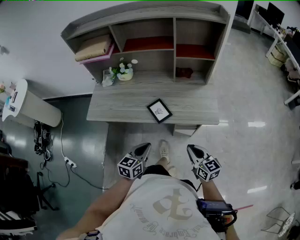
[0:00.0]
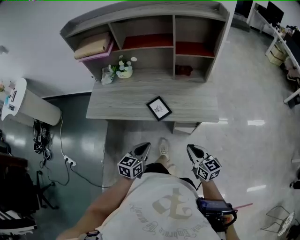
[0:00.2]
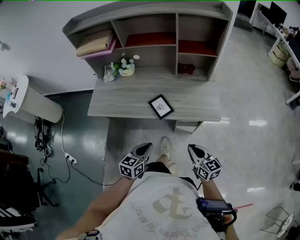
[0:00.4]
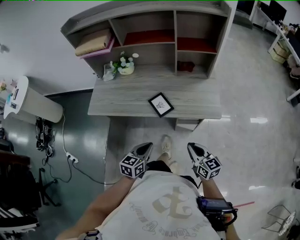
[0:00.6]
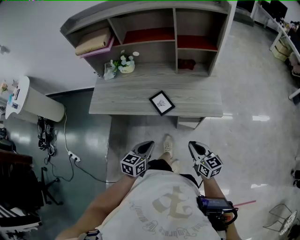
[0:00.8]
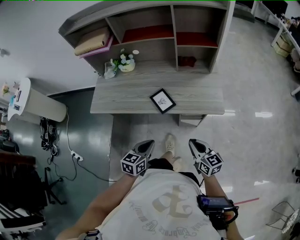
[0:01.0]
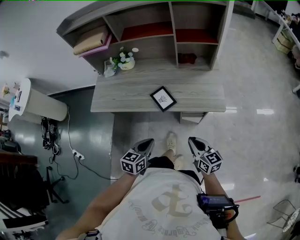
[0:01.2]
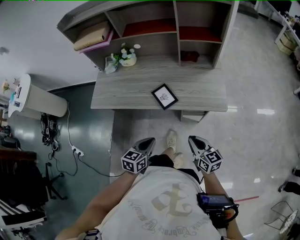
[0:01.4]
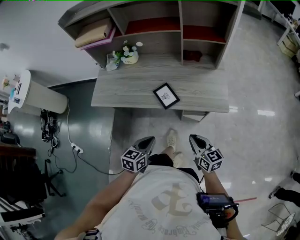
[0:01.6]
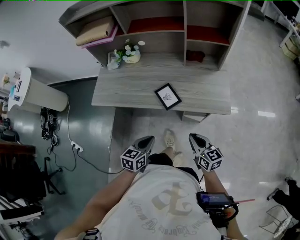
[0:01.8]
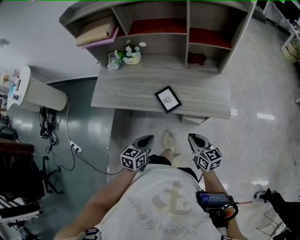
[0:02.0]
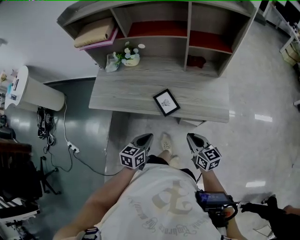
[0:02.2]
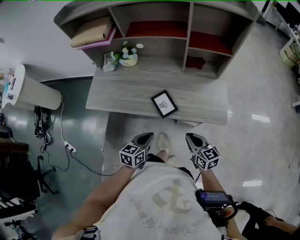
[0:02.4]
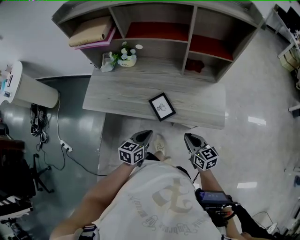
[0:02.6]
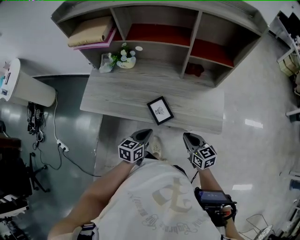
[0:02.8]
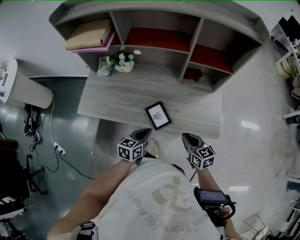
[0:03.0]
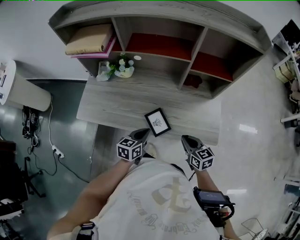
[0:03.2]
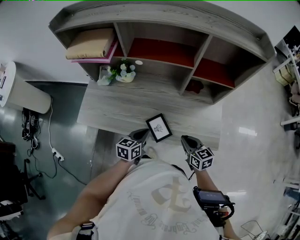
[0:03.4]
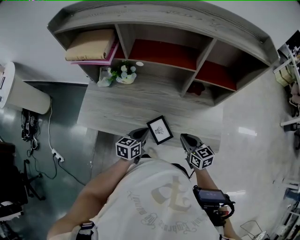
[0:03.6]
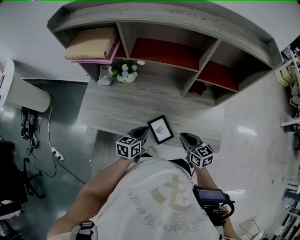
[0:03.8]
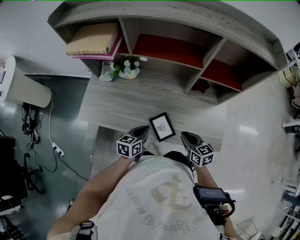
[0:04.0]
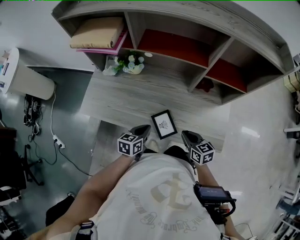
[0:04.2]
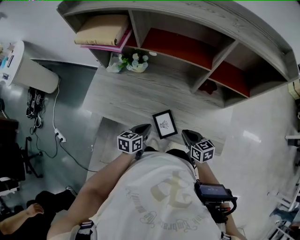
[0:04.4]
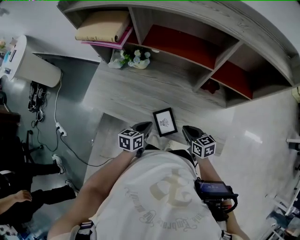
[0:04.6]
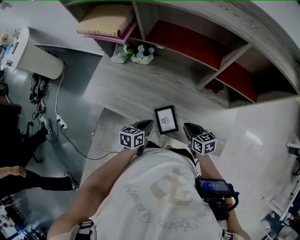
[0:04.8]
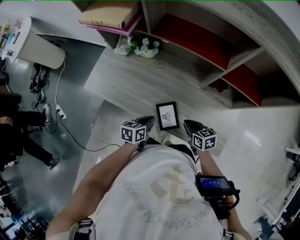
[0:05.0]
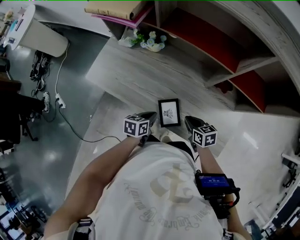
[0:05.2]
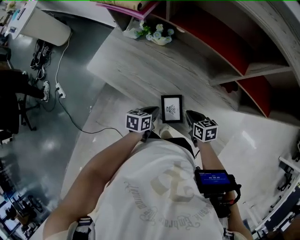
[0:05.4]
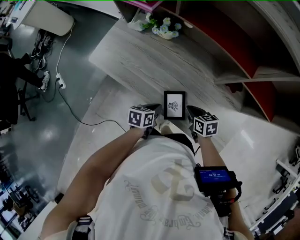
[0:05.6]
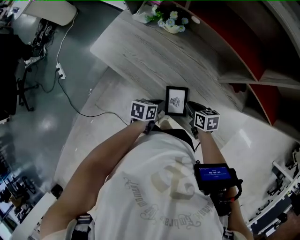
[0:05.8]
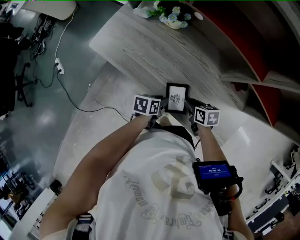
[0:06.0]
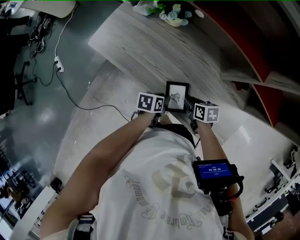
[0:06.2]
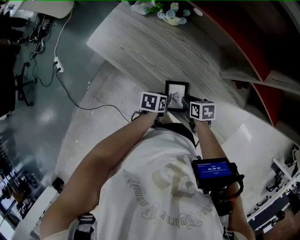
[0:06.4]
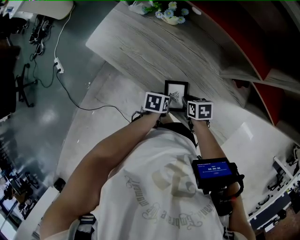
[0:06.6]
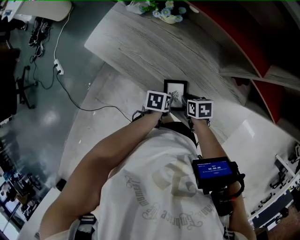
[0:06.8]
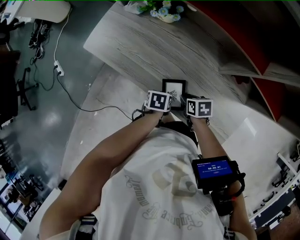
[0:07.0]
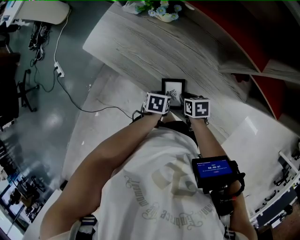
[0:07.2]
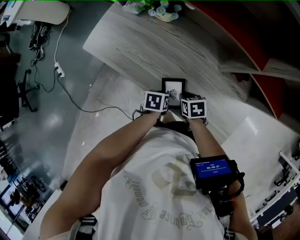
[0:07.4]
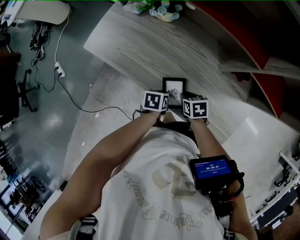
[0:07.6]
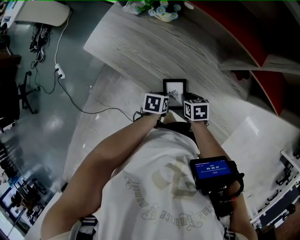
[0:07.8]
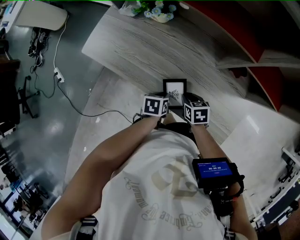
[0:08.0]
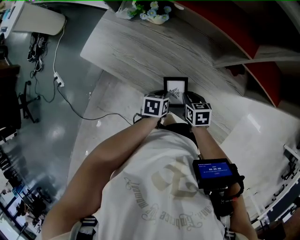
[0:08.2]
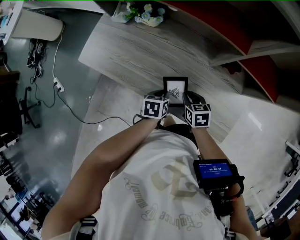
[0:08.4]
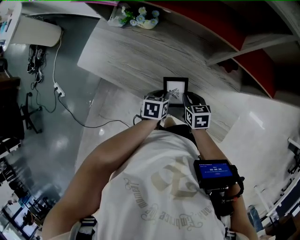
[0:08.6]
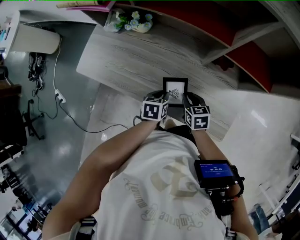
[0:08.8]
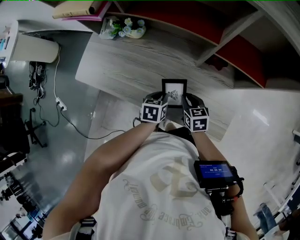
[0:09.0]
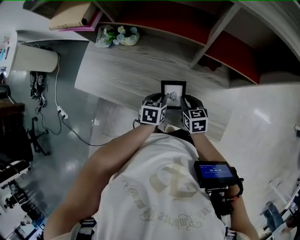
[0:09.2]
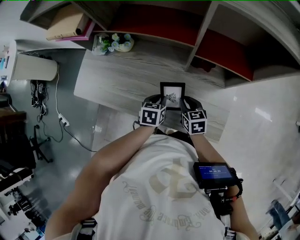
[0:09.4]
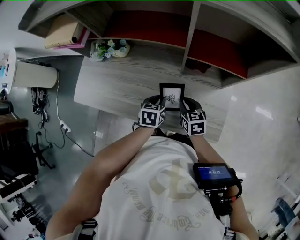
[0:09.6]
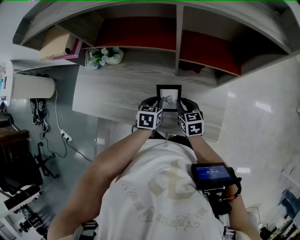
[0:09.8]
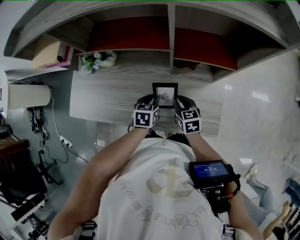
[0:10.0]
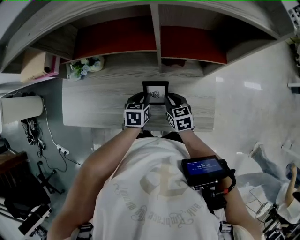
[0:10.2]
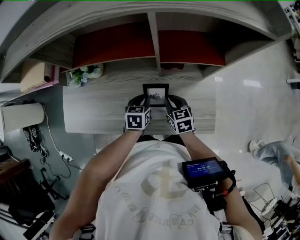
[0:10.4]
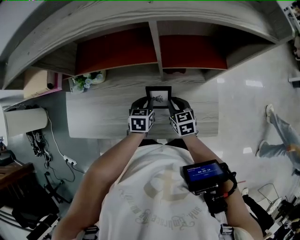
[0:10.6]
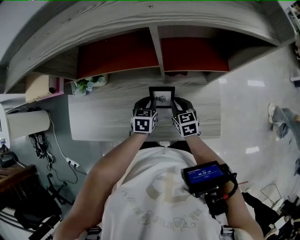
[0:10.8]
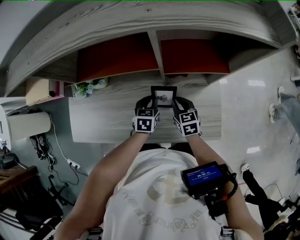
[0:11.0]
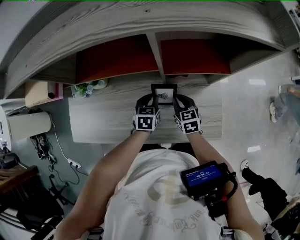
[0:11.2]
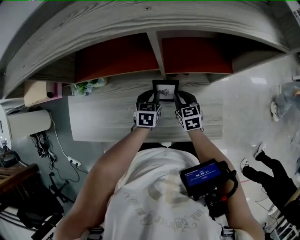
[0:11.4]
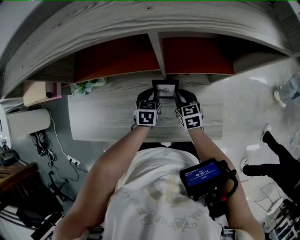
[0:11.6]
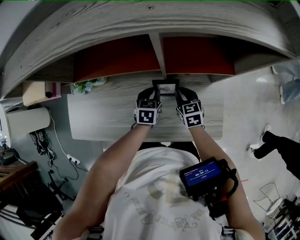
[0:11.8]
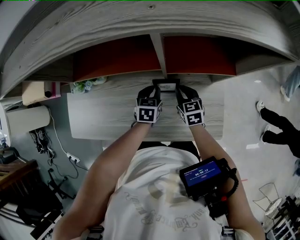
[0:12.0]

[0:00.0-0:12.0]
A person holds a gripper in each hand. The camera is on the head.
0:00.0 to 0:01.6: The grippers move only a little.
0:01.6 to 0:03.0: The grippers both shift forward by roughly 15 cm.
0:03.0 to 0:04.4: Both grippers travel together forward, roughly 10 cm.
0:04.4 to 0:06.0: The left gripper travels downward by roughly 10 cm, turns by approximately 30 degrees, and opens. Meanwhile the right gripper travels downward and forward by about 15 cm, turns by some 30 degrees, and opens up.
0:06.0 to 0:07.6: The left gripper opens, then closes once more.
0:07.6 to 0:09.0: The two grippers go roughly 10 cm to the right and upward. The left gripper turns by some 20 degrees; the right gripper rotates roughly 30 degrees.
0:09.0 to 0:10.4: The left gripper moves forward and to the right, roughly 10 cm, and rotates approximately 20 degrees; the right gripper travels to the right by some 5 cm.
0:10.4 to 0:12.0: The grippers both shift forward by some 10 cm.

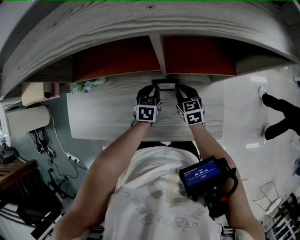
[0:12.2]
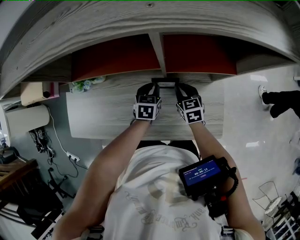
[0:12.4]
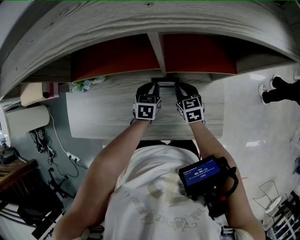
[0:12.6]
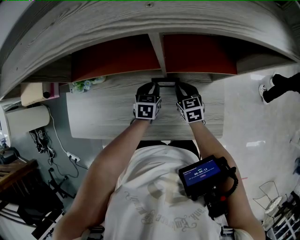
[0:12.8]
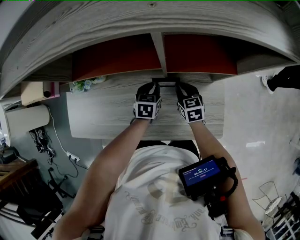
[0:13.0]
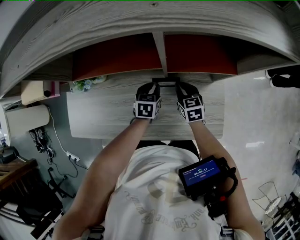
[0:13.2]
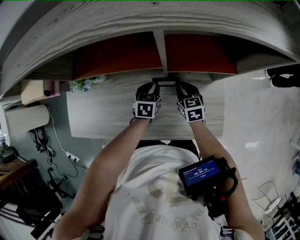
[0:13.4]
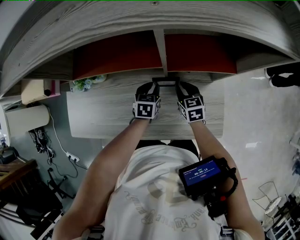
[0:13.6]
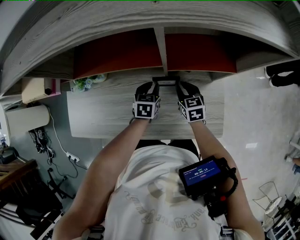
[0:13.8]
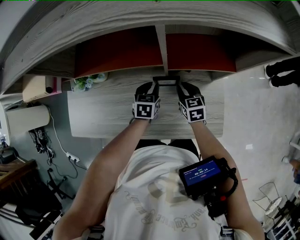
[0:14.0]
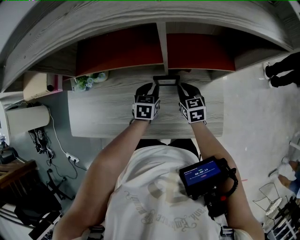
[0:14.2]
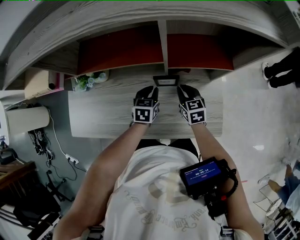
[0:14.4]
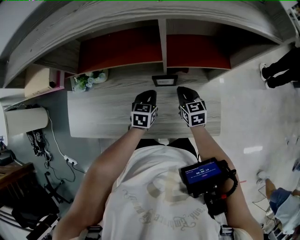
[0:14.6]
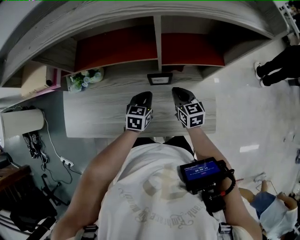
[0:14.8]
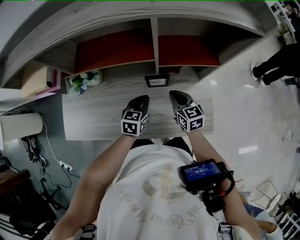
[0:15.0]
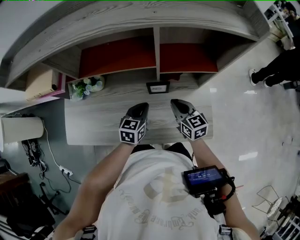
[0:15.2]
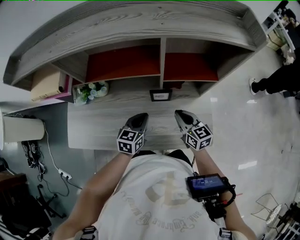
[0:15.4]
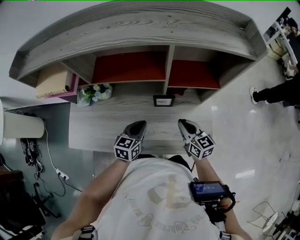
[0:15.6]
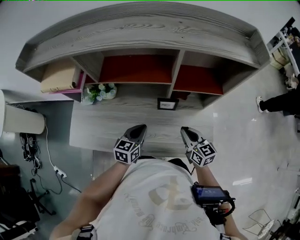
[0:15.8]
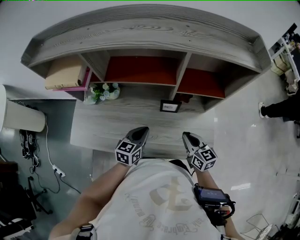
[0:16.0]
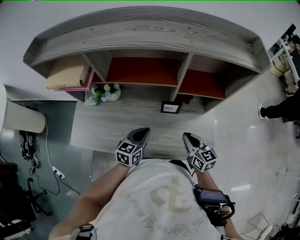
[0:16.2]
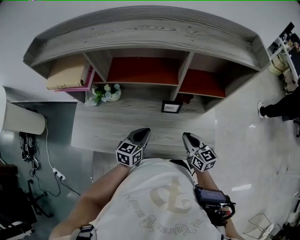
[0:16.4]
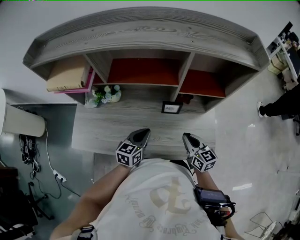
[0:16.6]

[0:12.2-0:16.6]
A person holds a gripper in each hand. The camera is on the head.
0:12.2 to 0:13.6: Neither gripper changes place.
0:13.6 to 0:15.2: Both grippers move upward and backward, roughly 10 cm. The right gripper closes, while the left gripper closes up.
0:15.2 to 0:16.6: The left gripper travels to the left and backward by some 10 cm. Meanwhile the right gripper moves backward, approximately 10 cm.

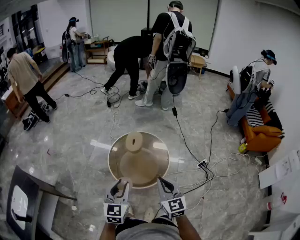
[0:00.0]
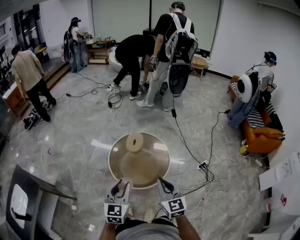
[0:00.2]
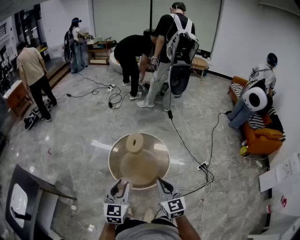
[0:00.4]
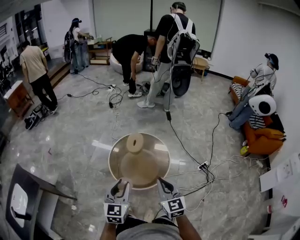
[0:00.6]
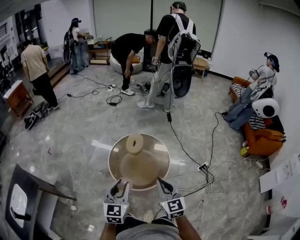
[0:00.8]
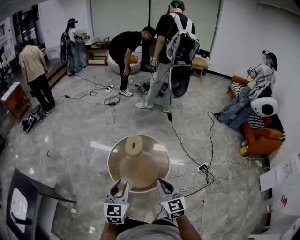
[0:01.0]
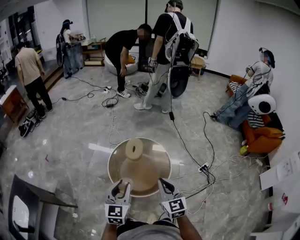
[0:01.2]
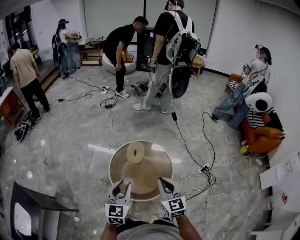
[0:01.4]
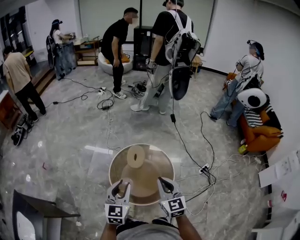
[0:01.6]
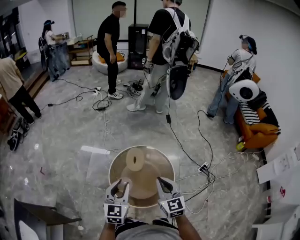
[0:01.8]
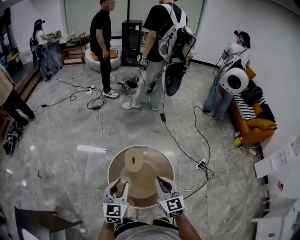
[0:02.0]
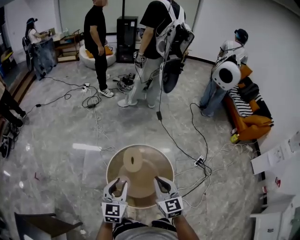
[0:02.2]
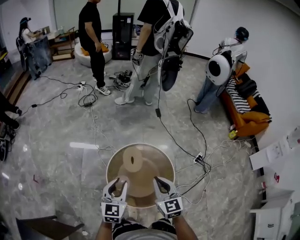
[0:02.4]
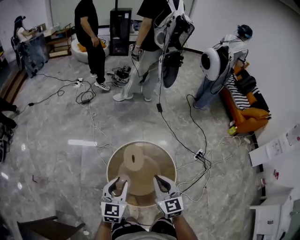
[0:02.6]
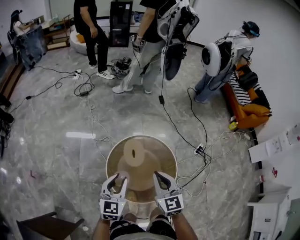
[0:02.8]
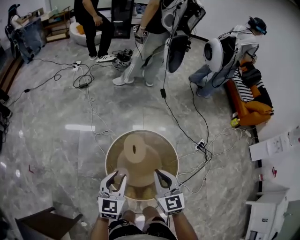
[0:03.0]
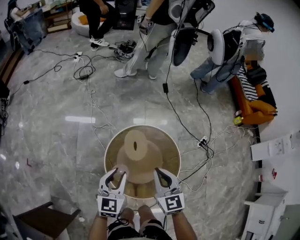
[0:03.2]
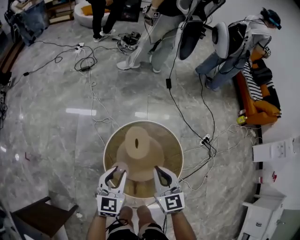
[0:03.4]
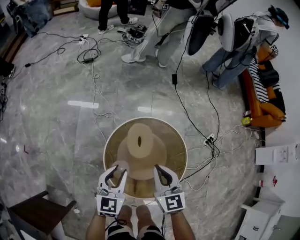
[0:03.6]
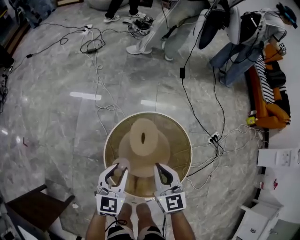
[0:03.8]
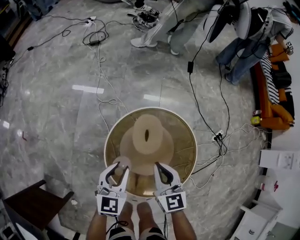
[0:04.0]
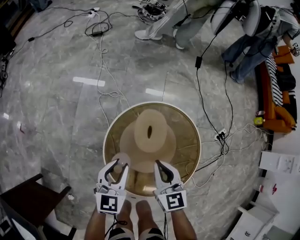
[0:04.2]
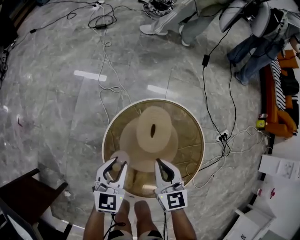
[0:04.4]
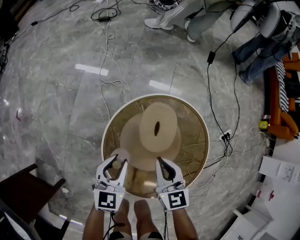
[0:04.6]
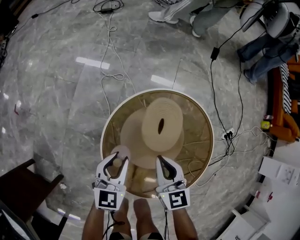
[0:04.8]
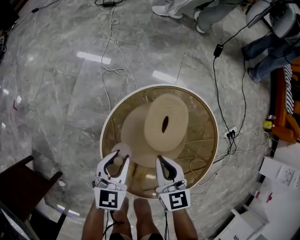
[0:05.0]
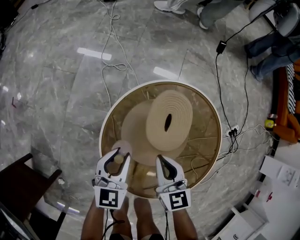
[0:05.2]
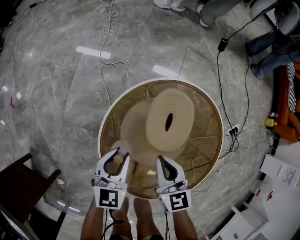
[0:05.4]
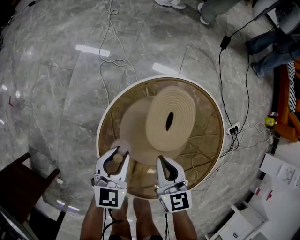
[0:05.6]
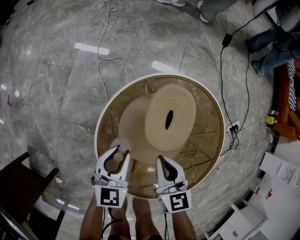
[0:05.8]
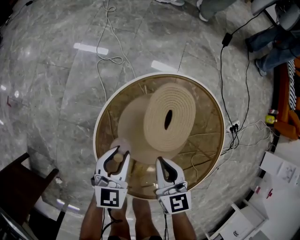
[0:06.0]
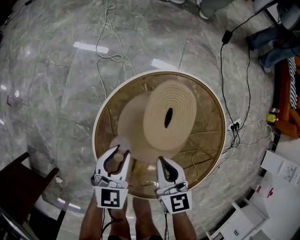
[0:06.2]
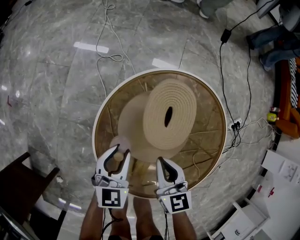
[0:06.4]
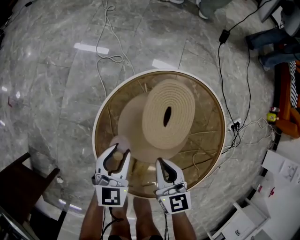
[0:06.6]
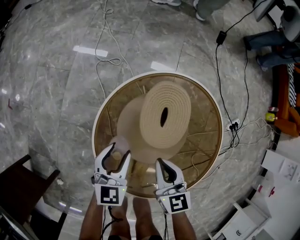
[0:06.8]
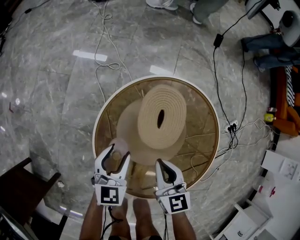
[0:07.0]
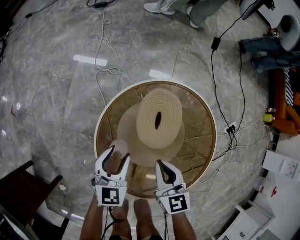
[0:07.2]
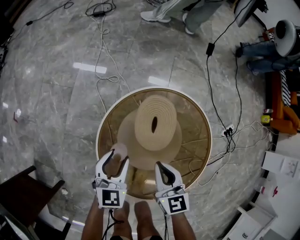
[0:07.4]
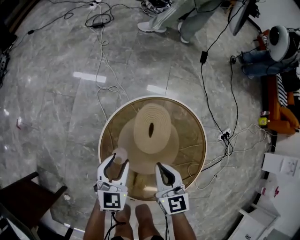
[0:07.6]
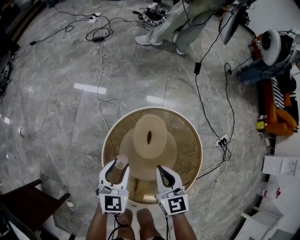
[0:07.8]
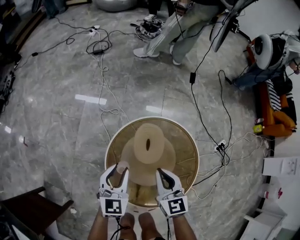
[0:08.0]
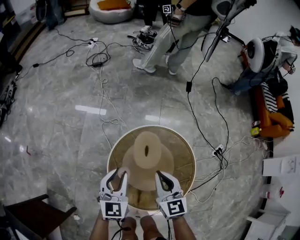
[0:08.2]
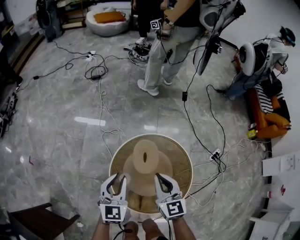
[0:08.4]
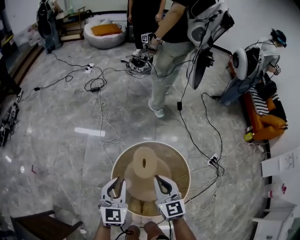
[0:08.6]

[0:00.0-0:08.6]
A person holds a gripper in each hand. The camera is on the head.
0:00.0 to 0:01.4: The grippers both shift forward by about 15 cm.
0:01.4 to 0:02.8: Both grippers move forward and to the left, about 25 cm.
0:02.8 to 0:04.4: The two grippers go approximately 30 cm downward.
0:04.4 to 0:05.8: The two grippers go roughly 15 cm downward.
0:05.8 to 0:07.2: The left gripper opens up.
0:07.2 to 0:08.6: The two grippers go about 35 cm upward. The left gripper closes.
